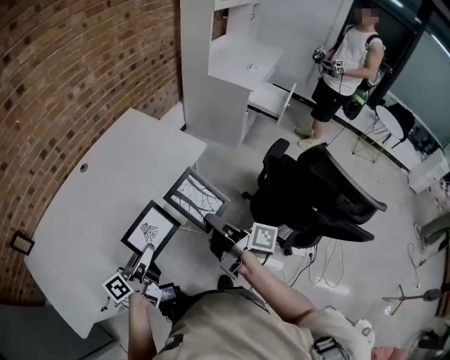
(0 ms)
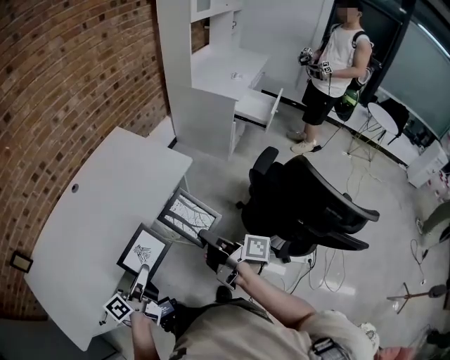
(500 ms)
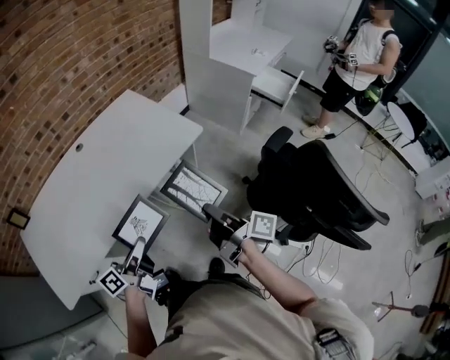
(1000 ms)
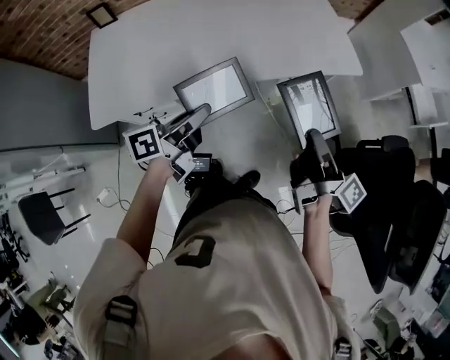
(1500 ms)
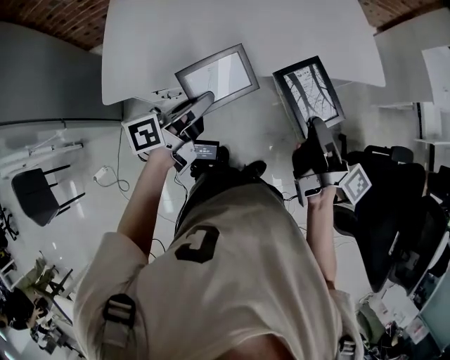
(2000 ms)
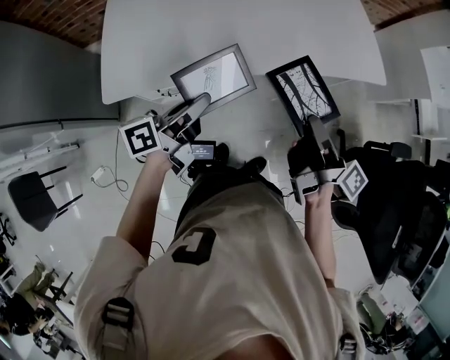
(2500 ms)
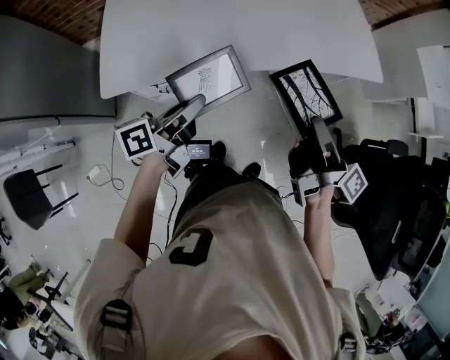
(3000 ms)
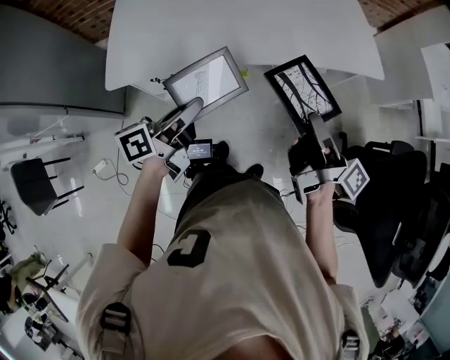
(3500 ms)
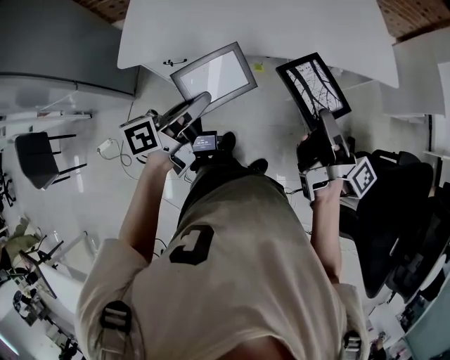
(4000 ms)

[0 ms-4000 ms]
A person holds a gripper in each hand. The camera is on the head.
0 ms to 2000 ms: The right gripper travels downward by about 5 cm. The left gripper swivels roughly 20 degrees.
2000 ms to 4000 ms: The left gripper travels backward by roughly 5 cm.

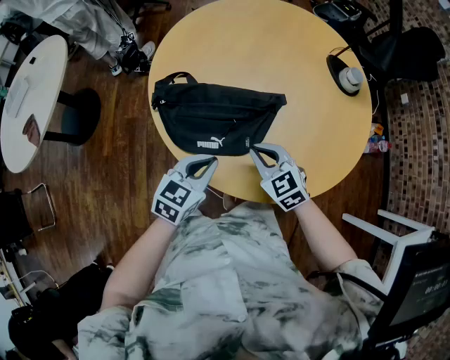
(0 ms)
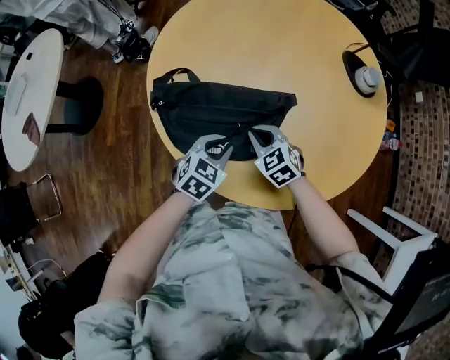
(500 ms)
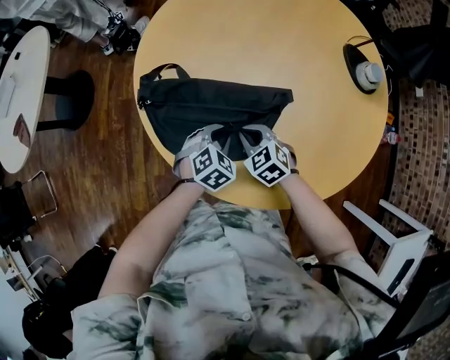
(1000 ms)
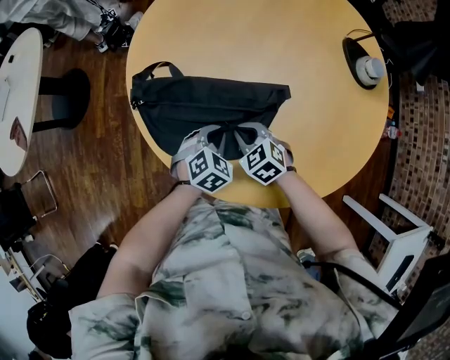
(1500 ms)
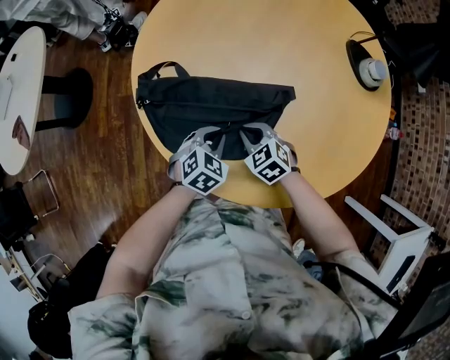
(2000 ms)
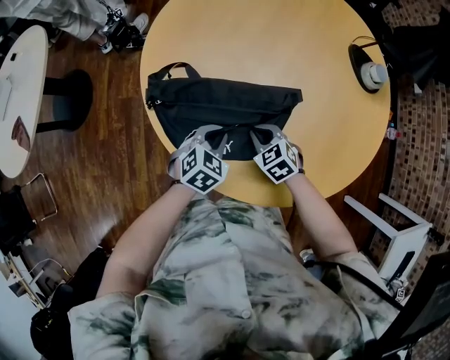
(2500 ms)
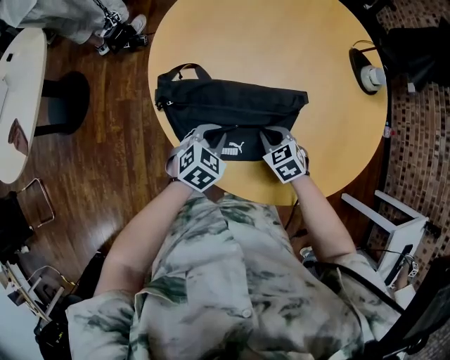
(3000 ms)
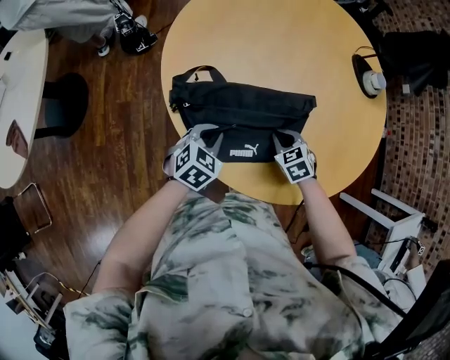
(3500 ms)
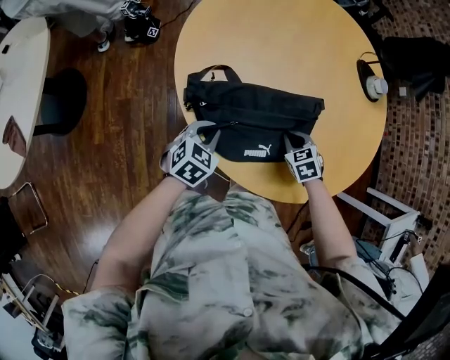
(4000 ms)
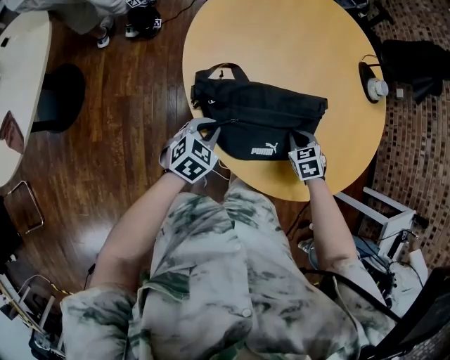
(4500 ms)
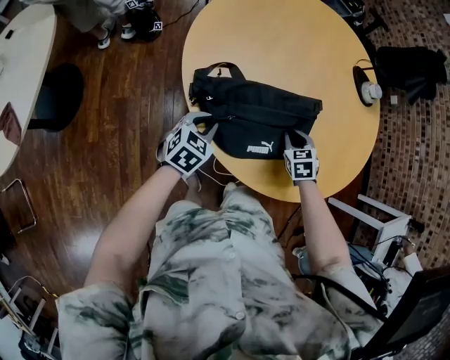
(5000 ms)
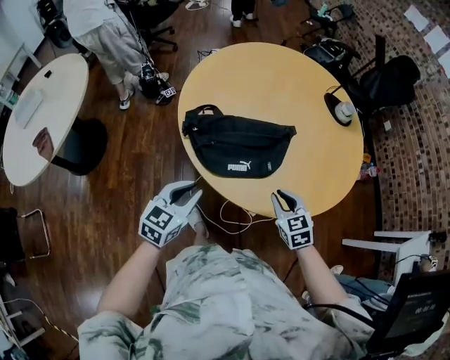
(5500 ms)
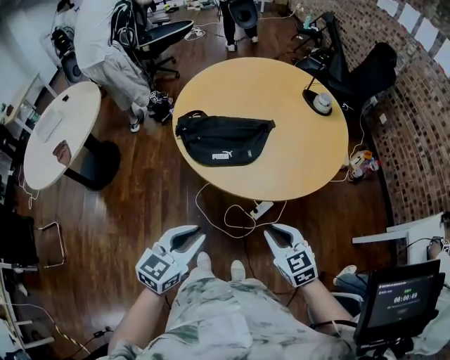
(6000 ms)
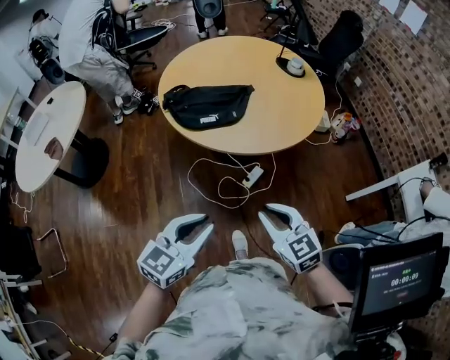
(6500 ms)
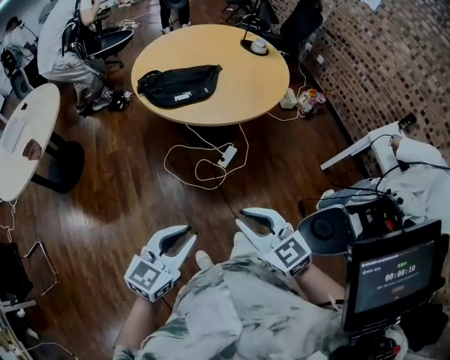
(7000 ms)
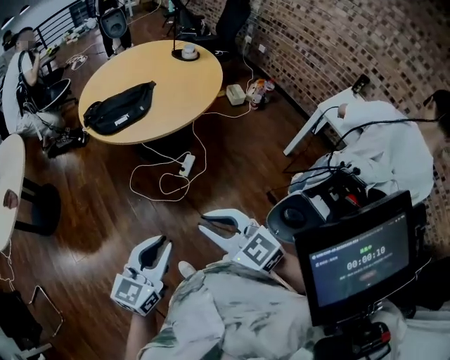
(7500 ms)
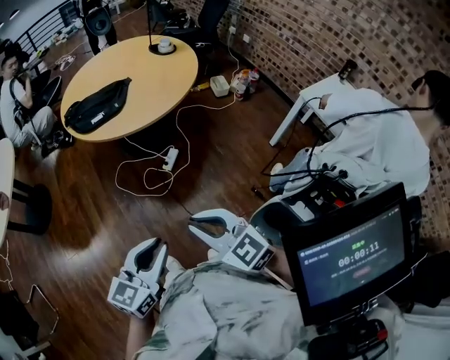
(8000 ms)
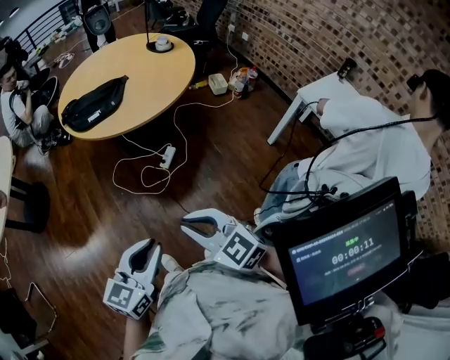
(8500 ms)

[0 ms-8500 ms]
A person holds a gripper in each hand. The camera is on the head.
0 ms to 2000 ms: Both grippers travel together downward and forward, some 15 cm. The left gripper swivels roughly 30 degrees.
2000 ms to 4000 ms: The left gripper moves about 15 cm, while the right gripper rotates some 30 degrees.
4000 ms to 6500 ms: Both grippers are carried backward, approximately 50 cm. Both grippers travel together upward, roughly 30 cm. The right gripper angles its fingers upward, by roughly 40 degrees, while the left gripper tilts its fingers approximately 30 degrees upward.
6500 ms to 8500 ms: Both grippers travel together backward and to the right, roughly 25 cm.

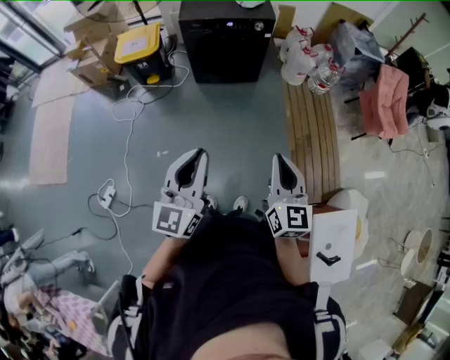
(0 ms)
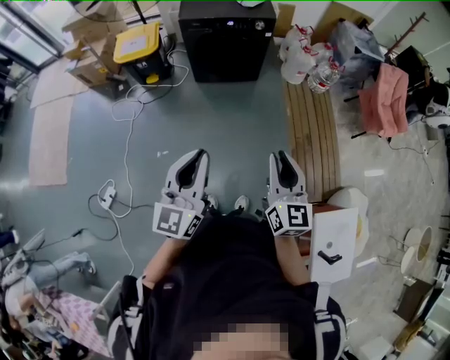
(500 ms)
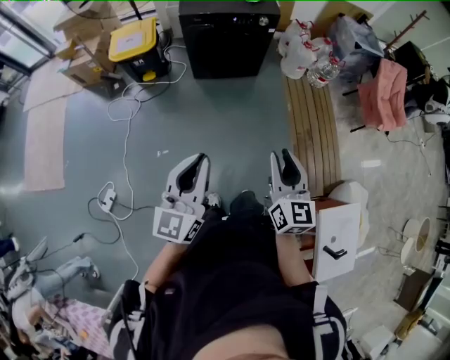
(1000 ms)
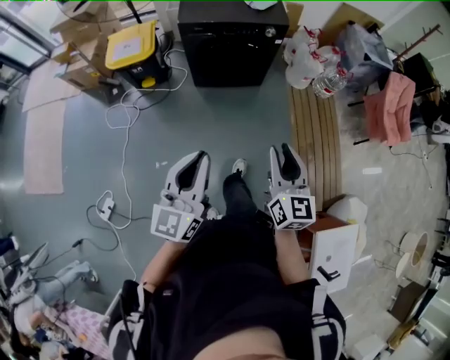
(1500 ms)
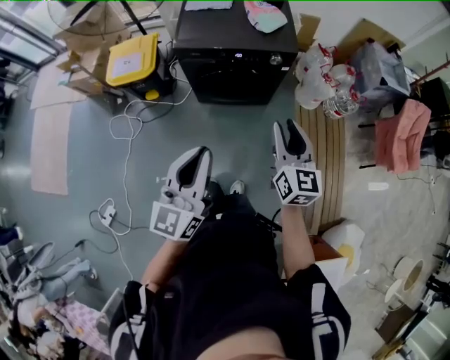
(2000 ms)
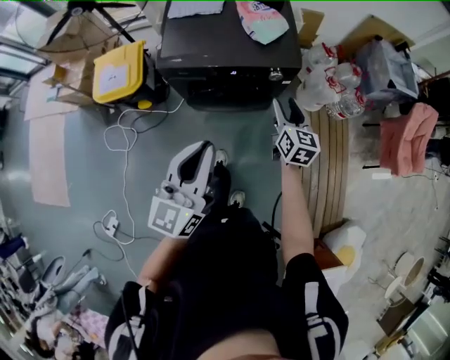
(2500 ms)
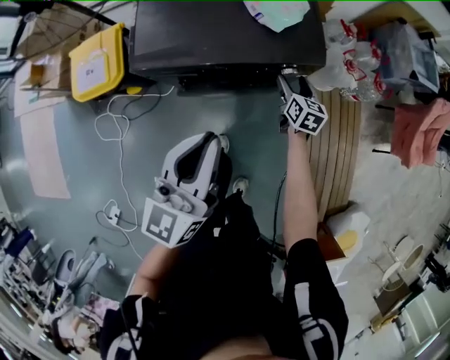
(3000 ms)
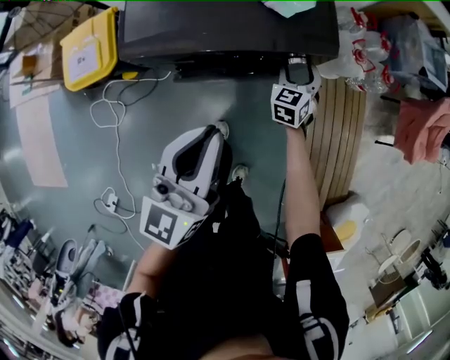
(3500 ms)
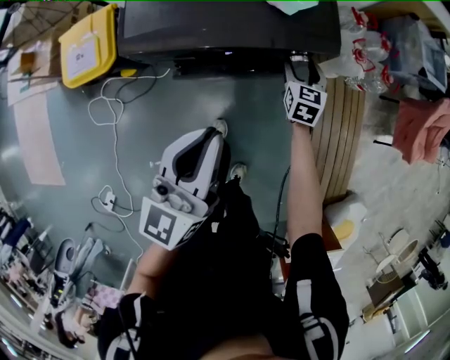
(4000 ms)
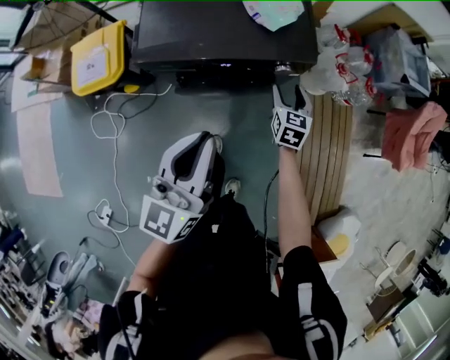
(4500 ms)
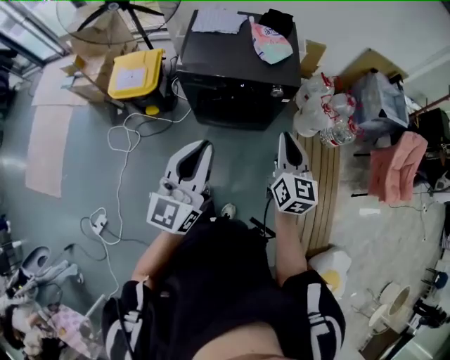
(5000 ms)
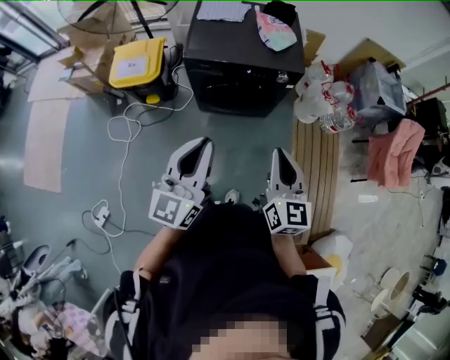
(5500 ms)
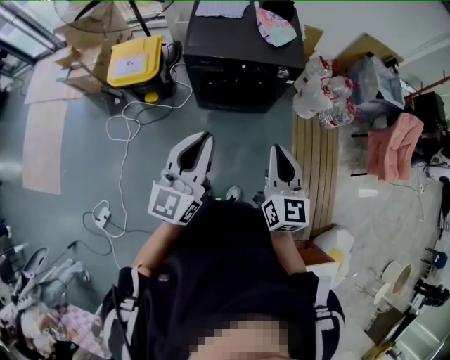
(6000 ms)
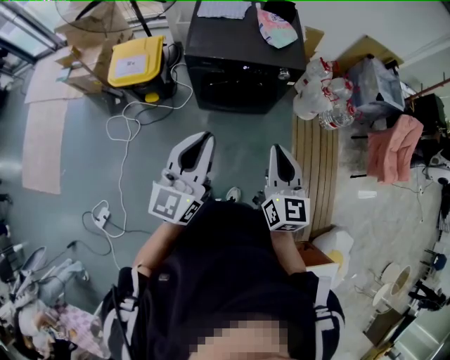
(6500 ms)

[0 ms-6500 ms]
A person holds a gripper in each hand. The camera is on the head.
0 ms to 2000 ms: Both grippers are carried forward, roughly 60 cm. The right gripper opens up.
2000 ms to 4500 ms: The two grippers go about 50 cm forward and downward. The right gripper turns by about 30 degrees, and opens.
4500 ms to 6500 ms: The left gripper moves backward and upward, roughly 40 cm. The right gripper goes roughly 60 cm backward and upward, turns by some 30 degrees, and closes its fingers.

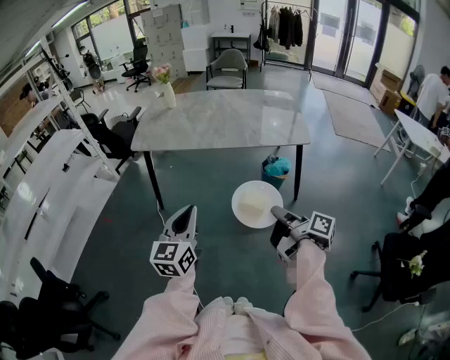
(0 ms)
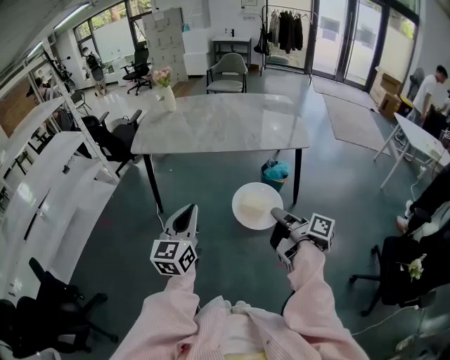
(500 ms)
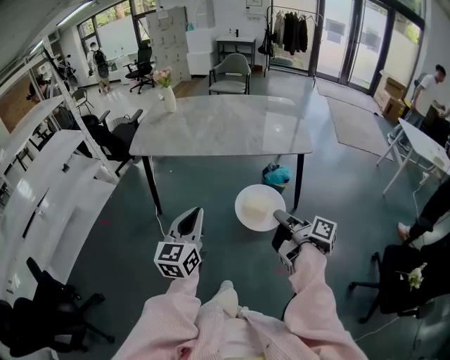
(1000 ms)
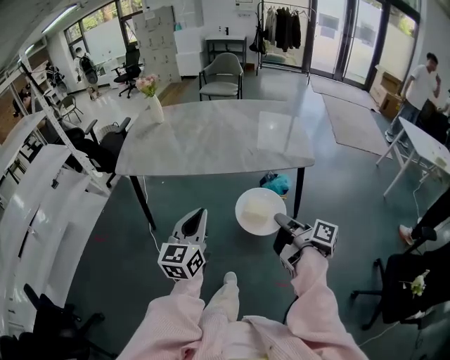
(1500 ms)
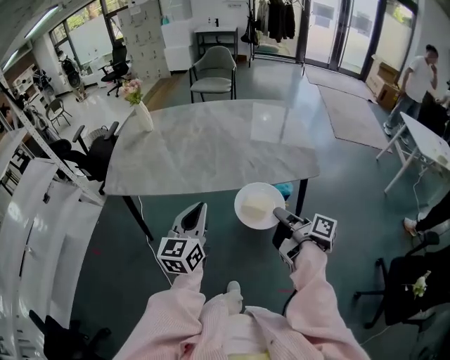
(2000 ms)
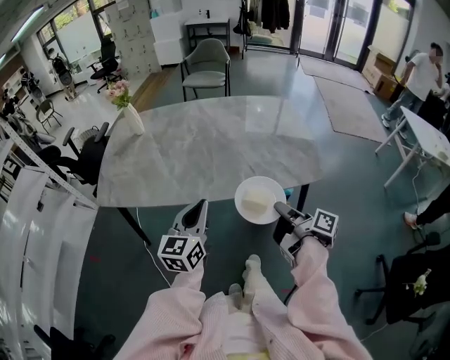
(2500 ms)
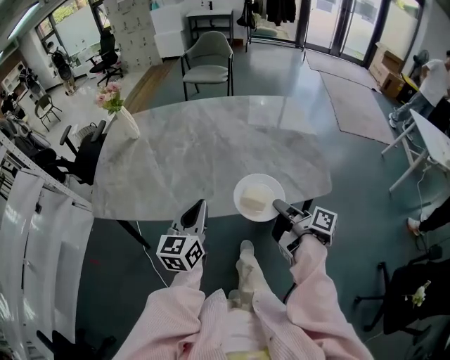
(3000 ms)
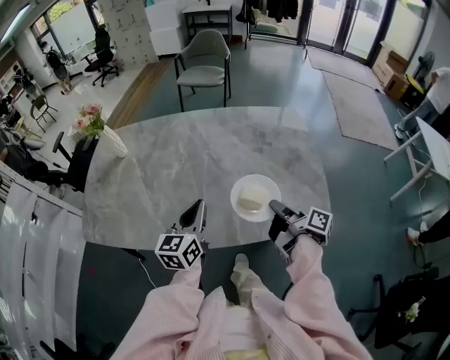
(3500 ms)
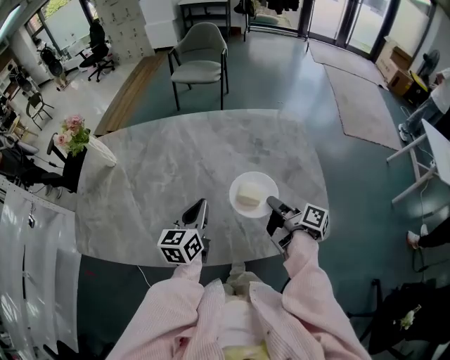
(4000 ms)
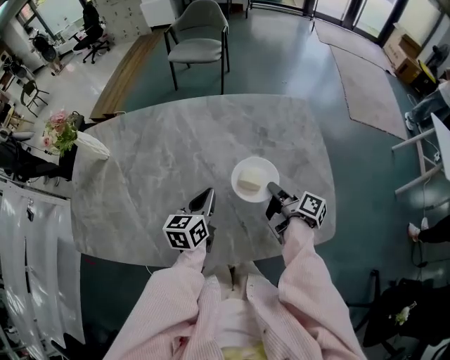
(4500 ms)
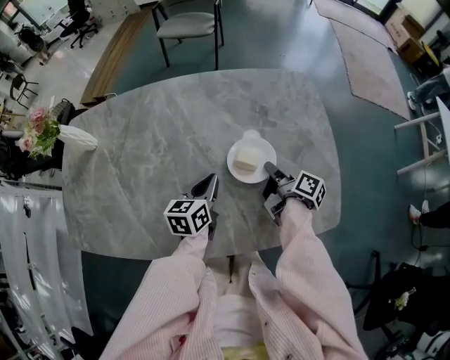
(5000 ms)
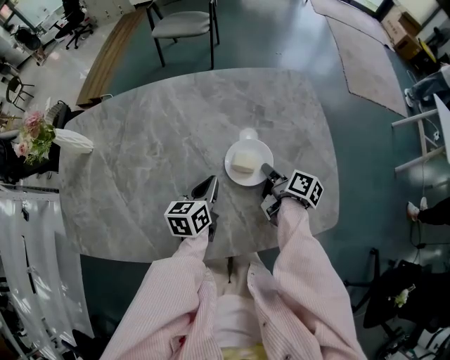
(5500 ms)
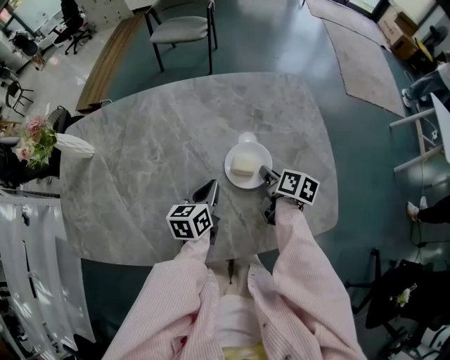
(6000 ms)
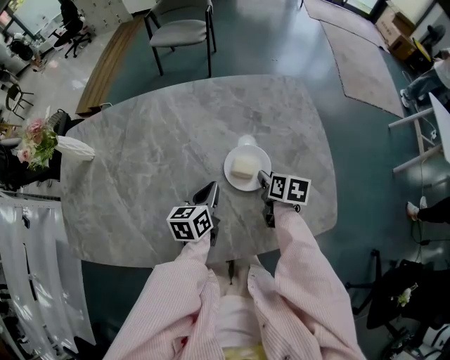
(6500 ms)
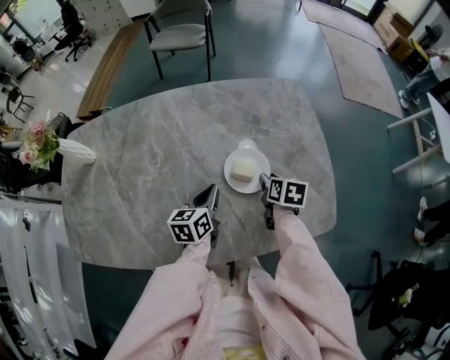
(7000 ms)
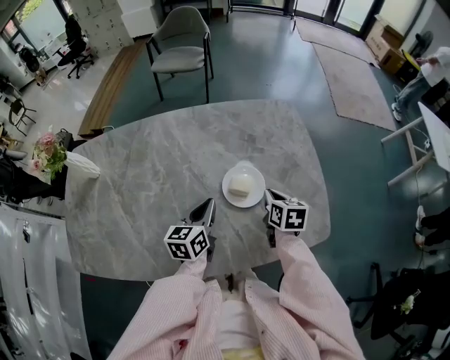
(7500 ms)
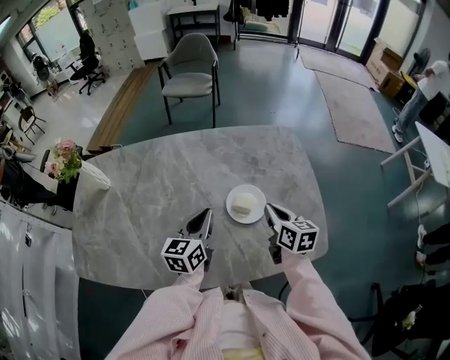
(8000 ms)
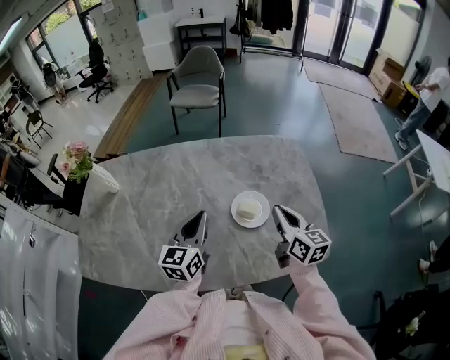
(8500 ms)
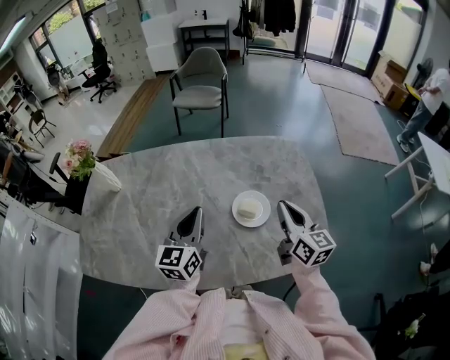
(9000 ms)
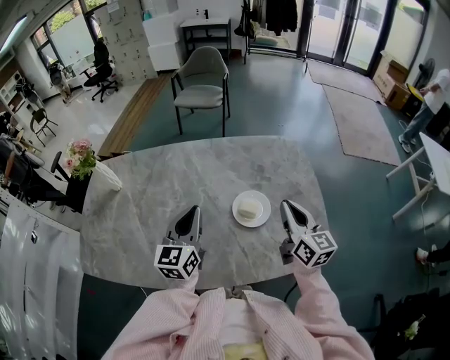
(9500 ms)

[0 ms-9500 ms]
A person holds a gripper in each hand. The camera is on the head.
0 ms to 2000 ms: Both grippers move forward, about 30 cm.
2000 ms to 4000 ms: The pair of grippers is taken forward, roughly 40 cm.
4000 ms to 5500 ms: Both grippers move downward and forward, some 15 cm.
5500 ms to 7500 ms: The left gripper travels upward by roughly 5 cm. The right gripper twists roughly 40 degrees counterclockwise, seen from behind, and opens and closes again.
7500 ms to 9500 ms: The left gripper heads upward and to the left, covering roughly 15 cm, and swivels approximately 30 degrees. Meanwhile the right gripper shifts approximately 20 cm upward, and tilts its fingers about 40 degrees upward.
